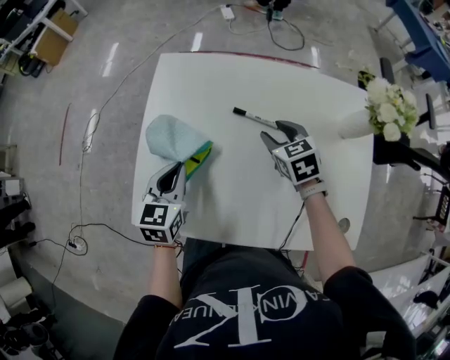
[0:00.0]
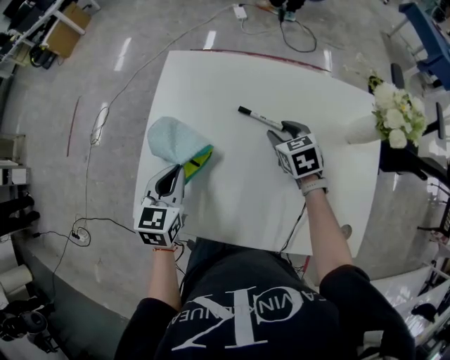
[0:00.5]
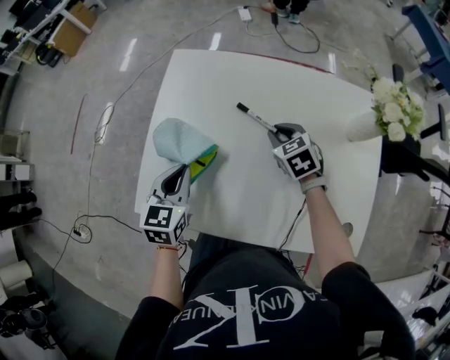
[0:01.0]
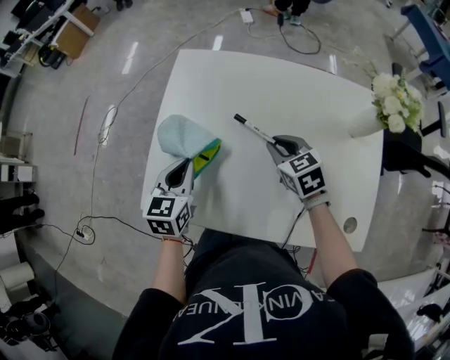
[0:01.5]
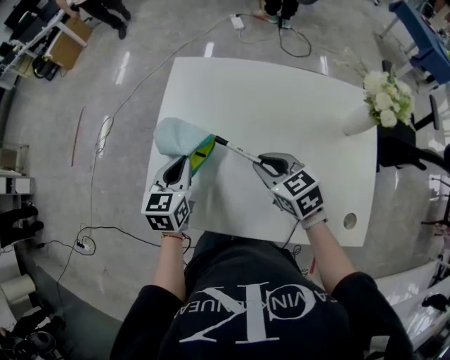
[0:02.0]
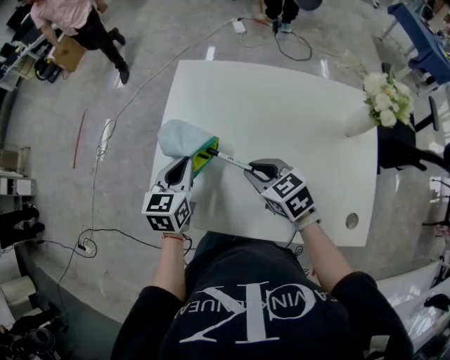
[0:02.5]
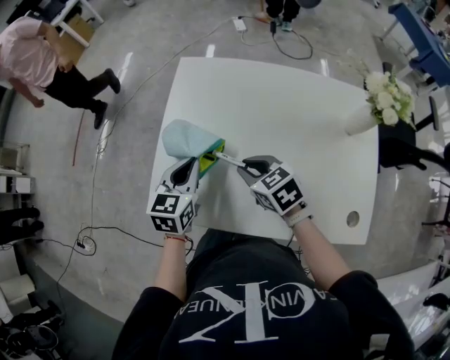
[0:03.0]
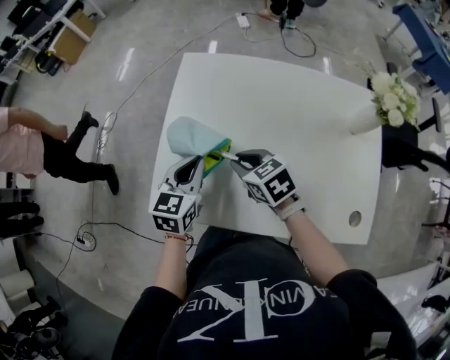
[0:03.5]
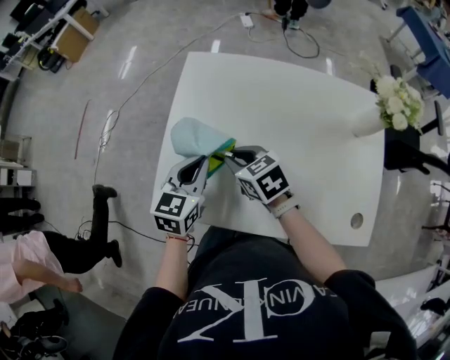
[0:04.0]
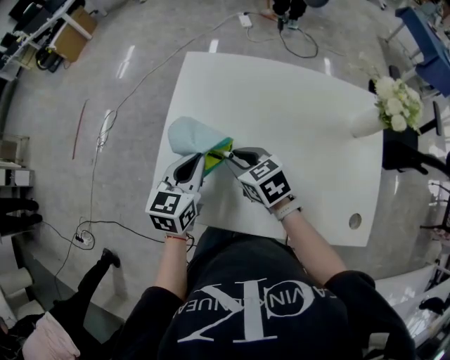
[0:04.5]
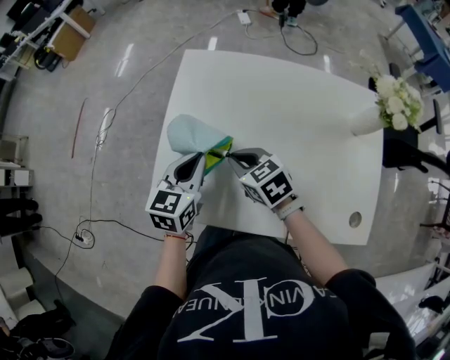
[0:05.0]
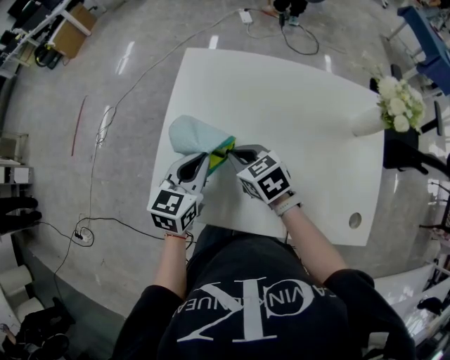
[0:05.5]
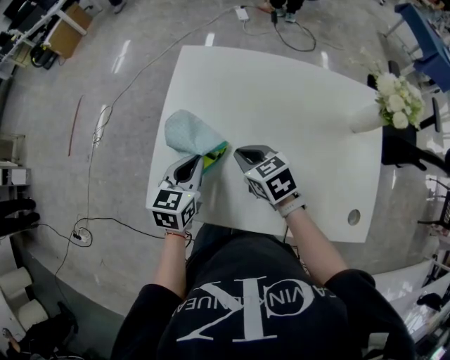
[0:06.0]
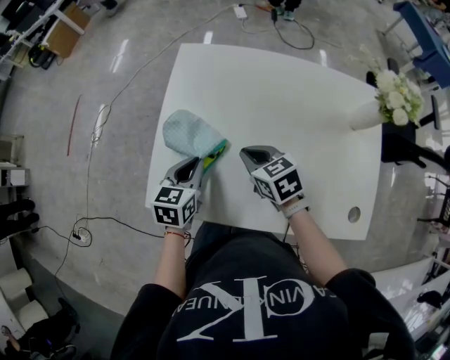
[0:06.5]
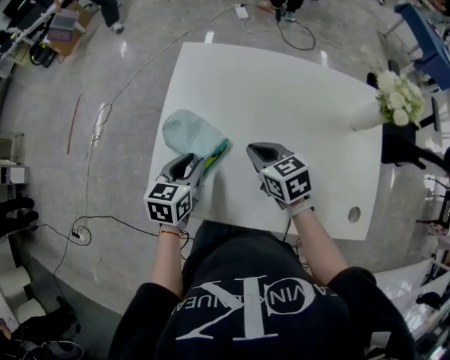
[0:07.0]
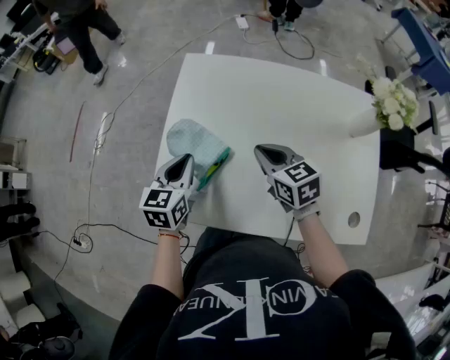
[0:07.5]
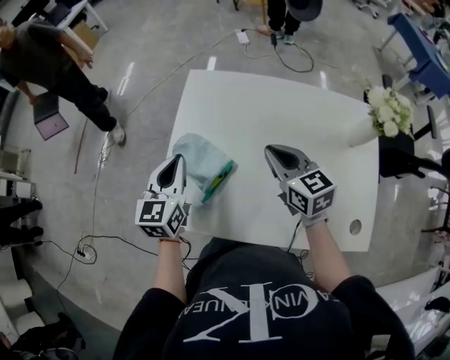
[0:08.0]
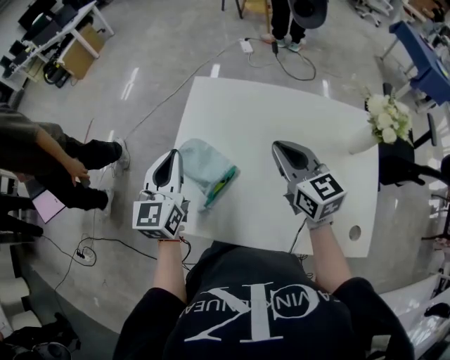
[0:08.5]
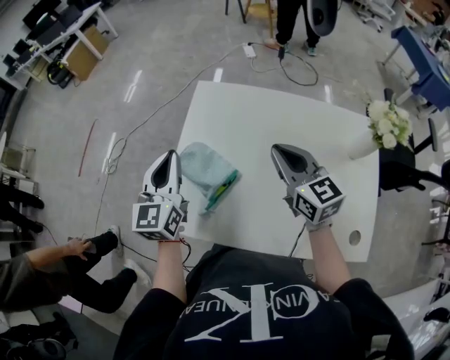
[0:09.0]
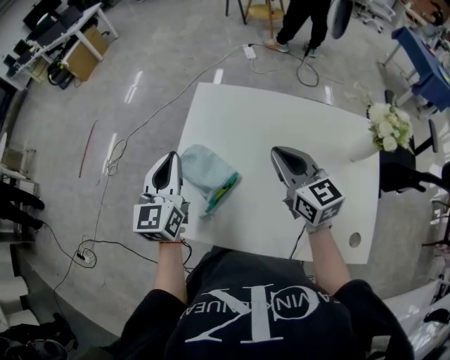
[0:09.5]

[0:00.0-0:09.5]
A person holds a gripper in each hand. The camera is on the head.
0:00.0 to 0:02.0: The right gripper shifts about 15 cm backward and to the left, and closes its fingers.
0:02.0 to 0:04.0: The right gripper shifts roughly 10 cm to the left.
0:04.0 to 0:05.5: There are only small adjustments of the grippers.
0:05.5 to 0:07.5: The left gripper shifts by approximately 5 cm, and opens and closes again; the right gripper goes some 5 cm to the right.
0:07.5 to 0:09.5: The two grippers go about 10 cm upward. The left gripper swivels roughly 30 degrees. The right gripper changes its angle by some 20 degrees.

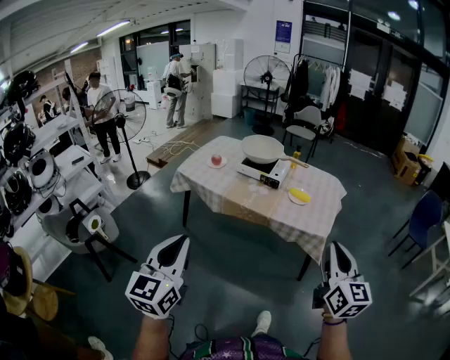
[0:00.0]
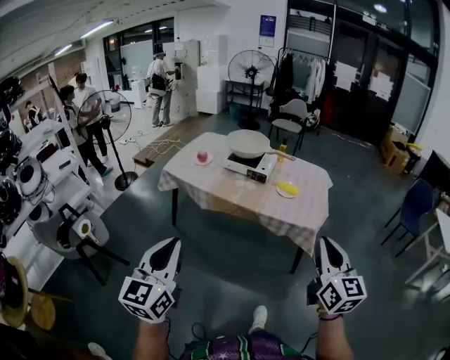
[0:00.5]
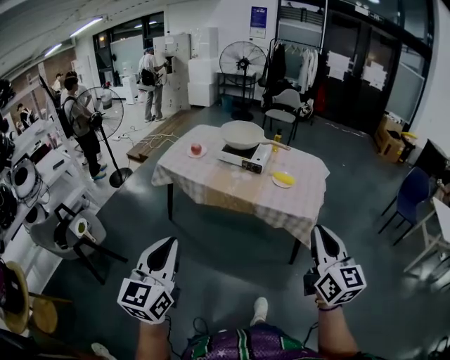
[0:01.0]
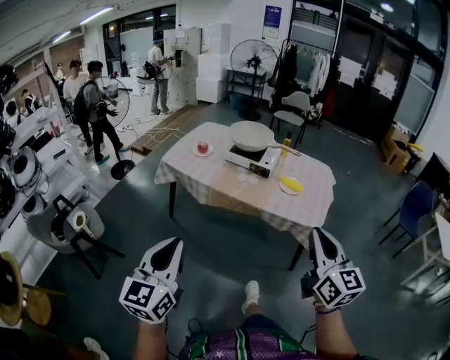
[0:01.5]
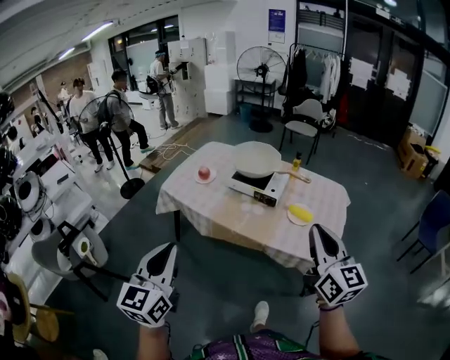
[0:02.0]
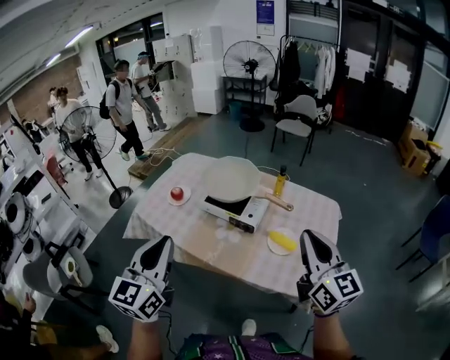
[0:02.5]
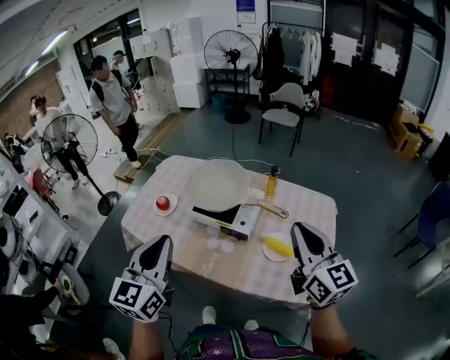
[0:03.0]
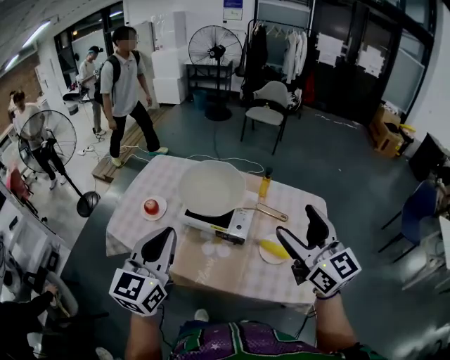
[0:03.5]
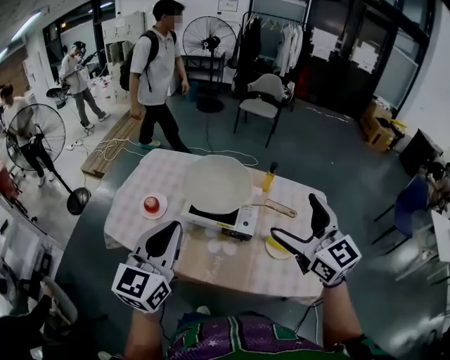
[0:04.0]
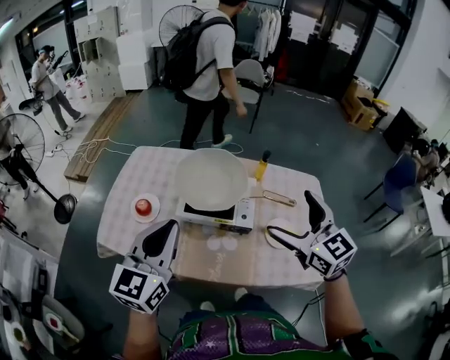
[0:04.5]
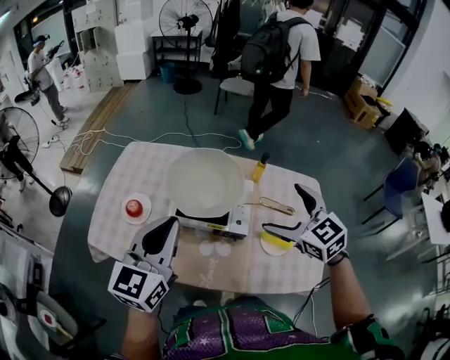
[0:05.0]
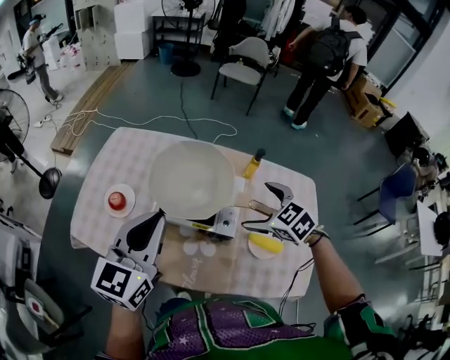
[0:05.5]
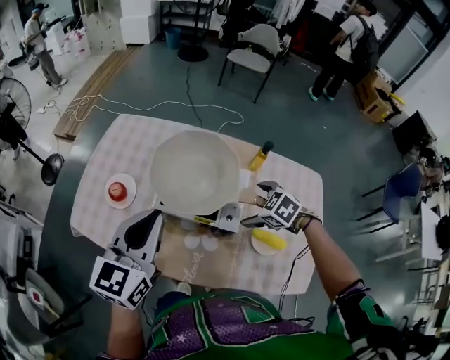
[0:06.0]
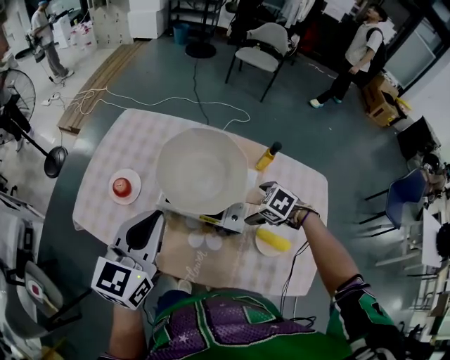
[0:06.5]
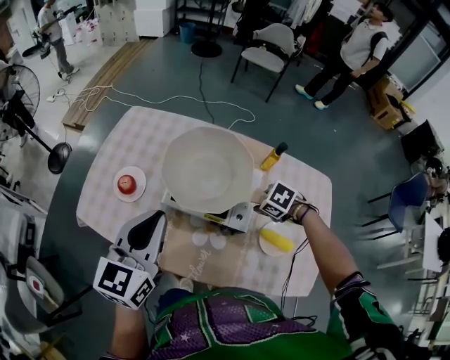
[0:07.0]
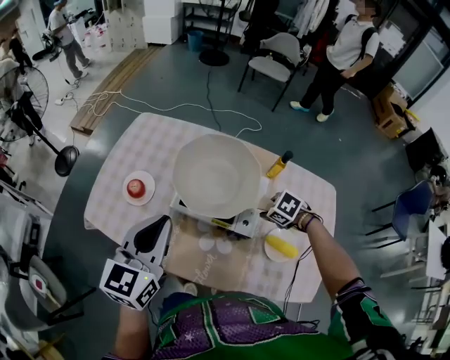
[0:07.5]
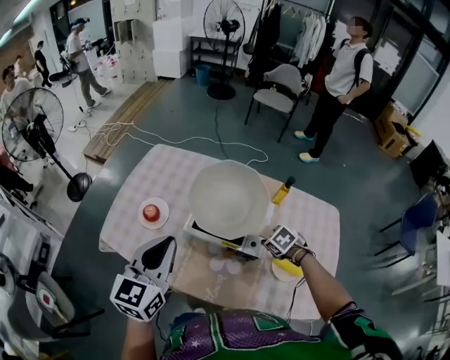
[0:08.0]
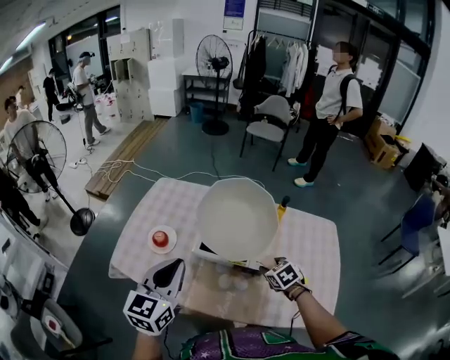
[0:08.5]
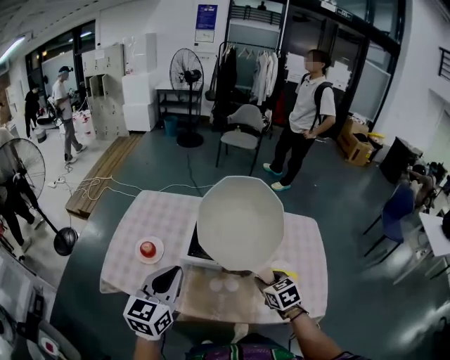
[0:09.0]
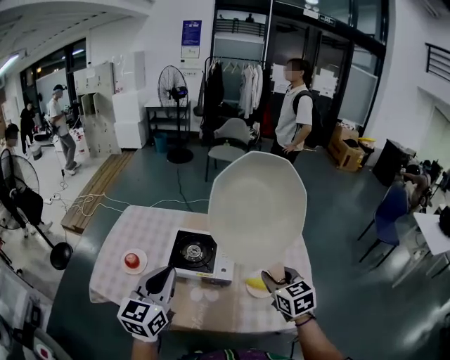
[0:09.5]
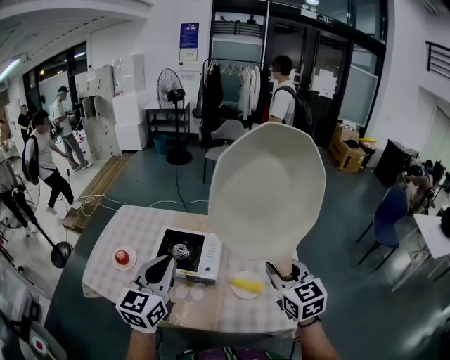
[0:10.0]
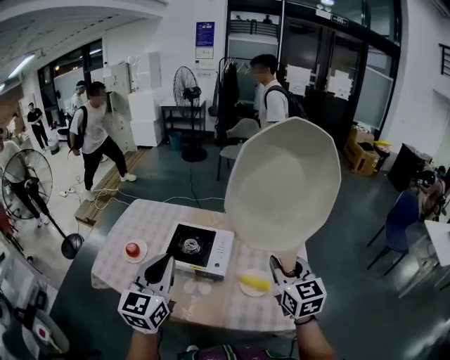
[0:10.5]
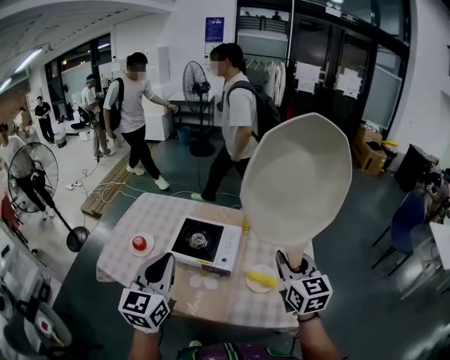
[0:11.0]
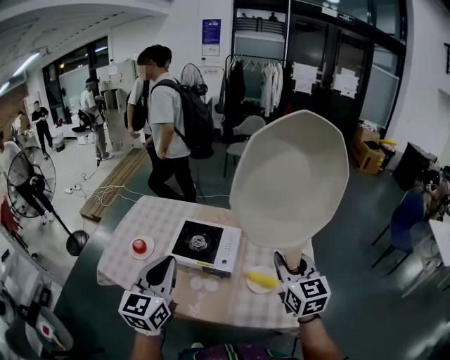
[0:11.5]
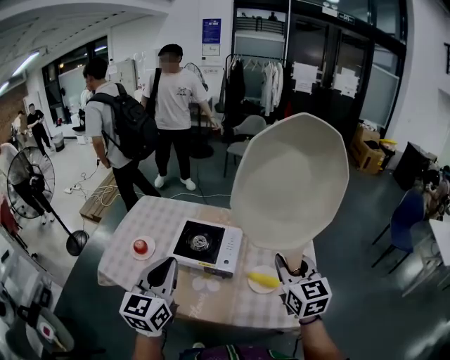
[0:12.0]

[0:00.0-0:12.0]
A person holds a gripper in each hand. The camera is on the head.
0:00.0 to 0:02.0: The grippers both shift forward by some 25 cm.
0:02.0 to 0:04.0: The two grippers travel together, forward, about 40 cm. The right gripper opens.
0:04.0 to 0:06.0: The right gripper heads downward and forward, covering approximately 35 cm, and tips its fingers downward by approximately 60 degrees. Meanwhile the left gripper shifts roughly 20 cm forward and downward.
0:06.0 to 0:08.0: The right gripper ends up roughly 5 cm from where it was, and closes up; the left gripper changes place by approximately 10 cm.
0:08.0 to 0:10.0: The right gripper moves upward, about 30 cm, and angles its fingers upward, by approximately 60 degrees, while the left gripper moves about 20 cm.
0:10.0 to 0:12.0: The left gripper travels to the left by some 5 cm.

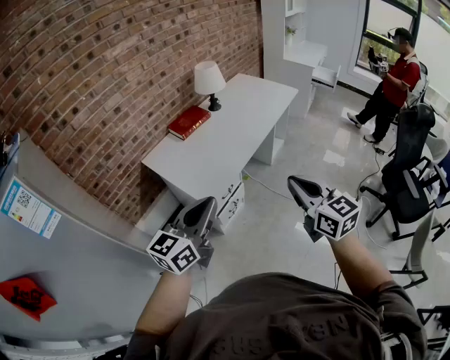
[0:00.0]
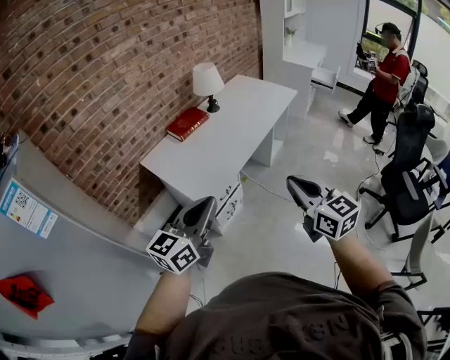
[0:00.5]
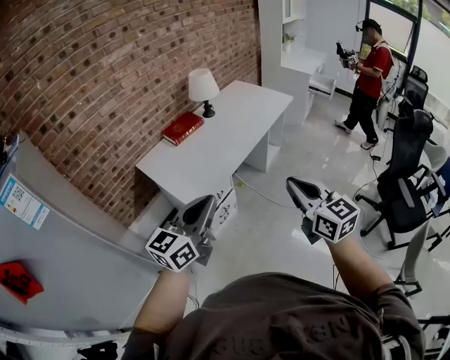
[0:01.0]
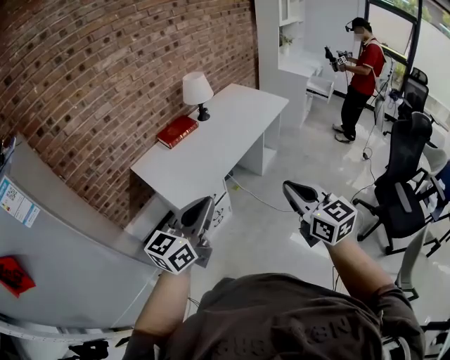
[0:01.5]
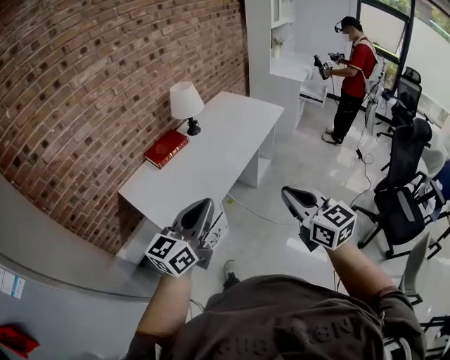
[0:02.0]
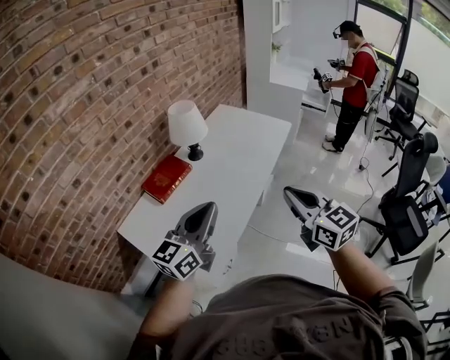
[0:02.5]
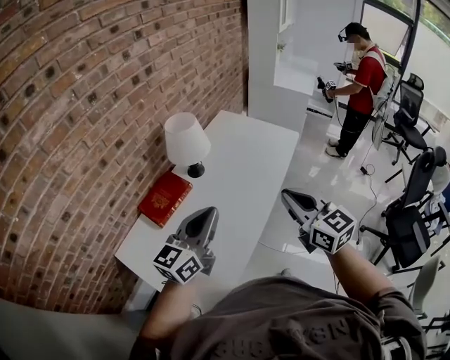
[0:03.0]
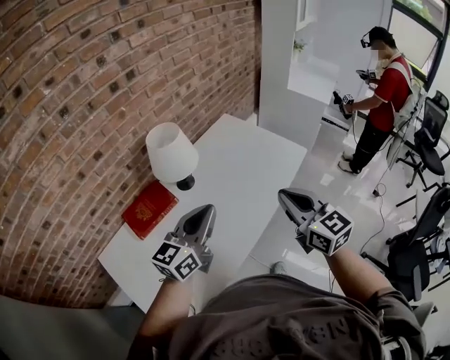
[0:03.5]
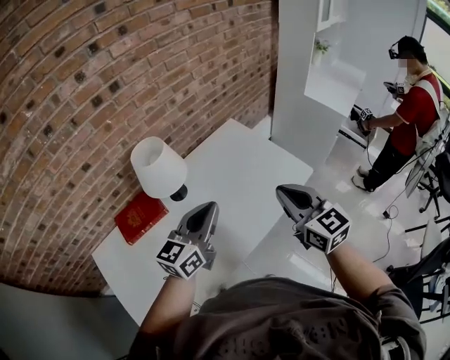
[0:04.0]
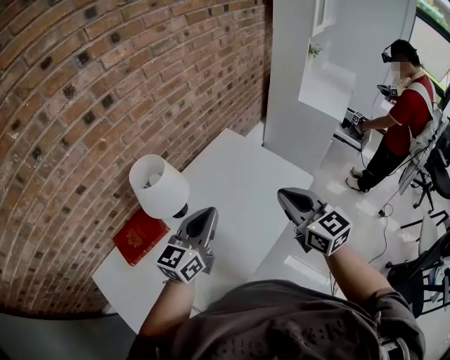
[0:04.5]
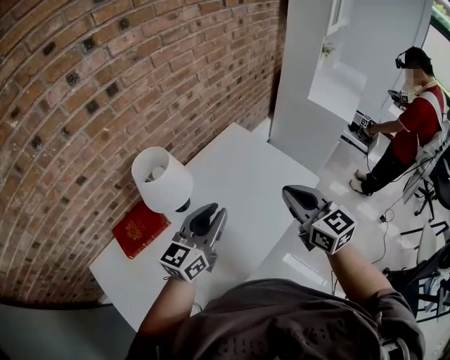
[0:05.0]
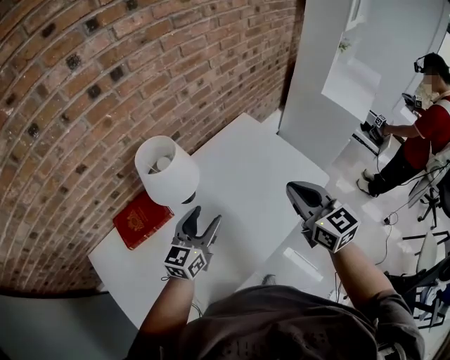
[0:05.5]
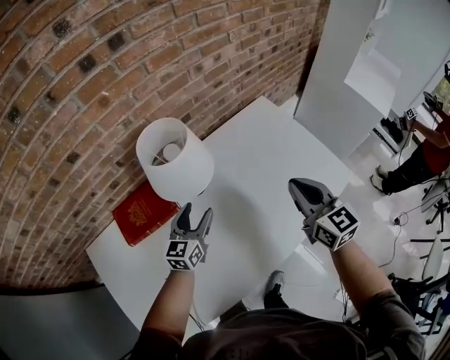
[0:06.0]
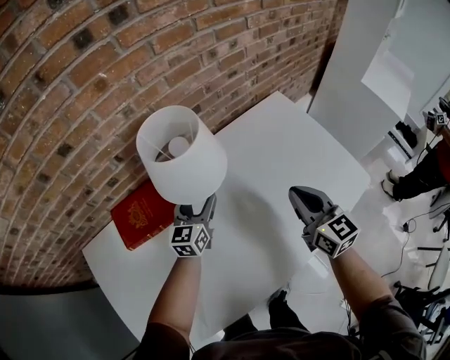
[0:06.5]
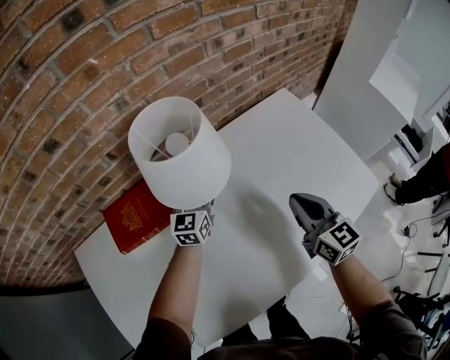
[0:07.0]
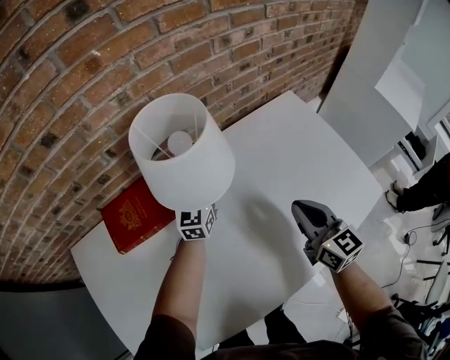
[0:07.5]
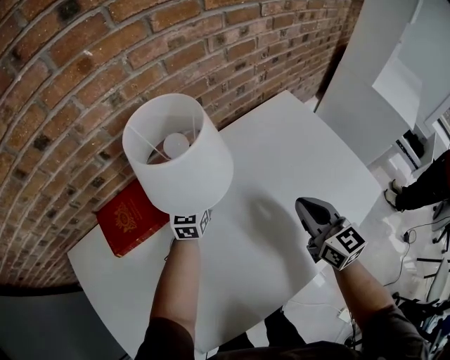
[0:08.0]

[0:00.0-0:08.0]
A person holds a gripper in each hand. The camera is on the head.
0:00.0 to 0:02.0: Both grippers travel together forward and to the right, some 15 cm.
0:02.0 to 0:04.0: The pair of grippers is taken forward, some 60 cm.
0:04.0 to 0:06.0: The right gripper heads forward, downward and to the left, covering roughly 20 cm, while the left gripper moves downward, to the left and forward, approximately 30 cm, swivels roughly 20 degrees, and opens its fingers.
0:06.0 to 0:08.0: The right gripper shifts some 15 cm downward; the left gripper travels forward and downward by roughly 20 cm, and closes.
